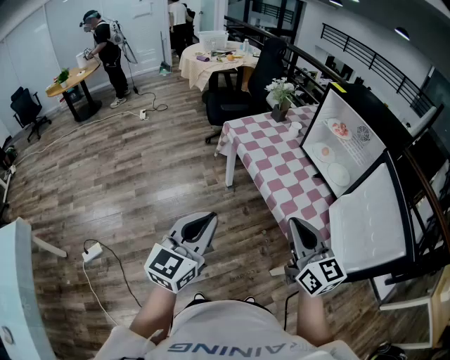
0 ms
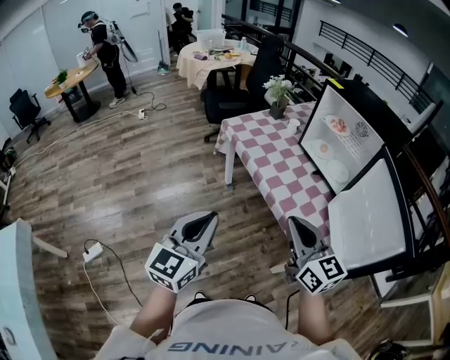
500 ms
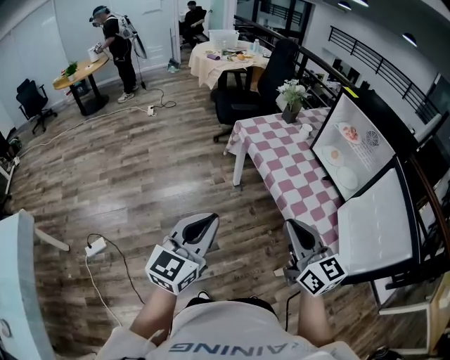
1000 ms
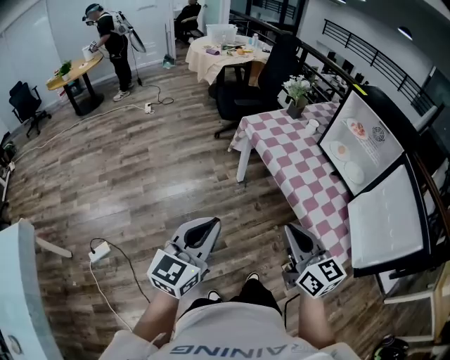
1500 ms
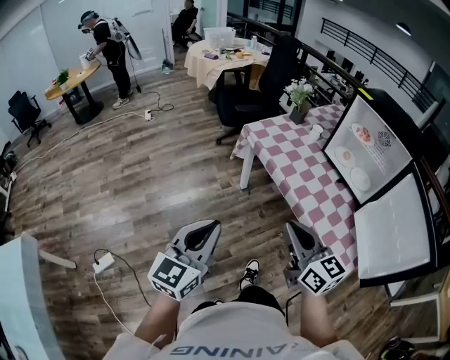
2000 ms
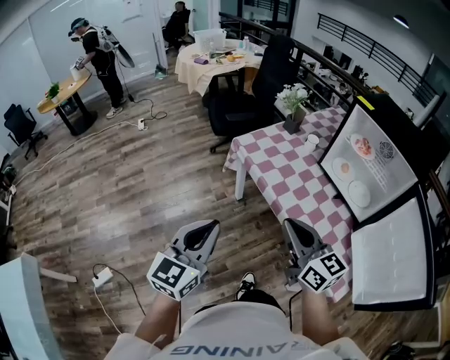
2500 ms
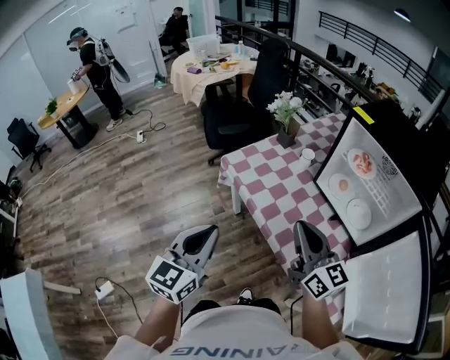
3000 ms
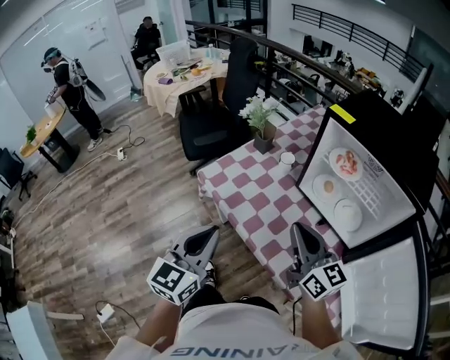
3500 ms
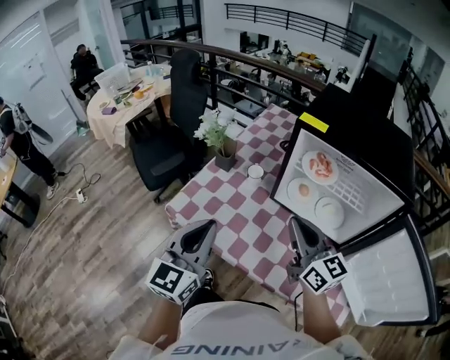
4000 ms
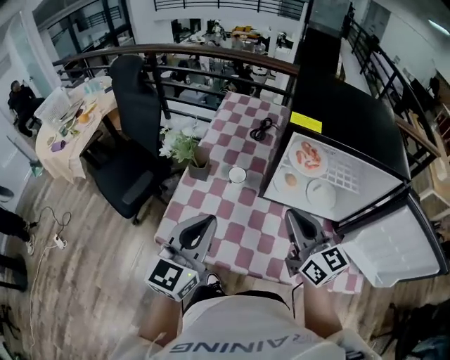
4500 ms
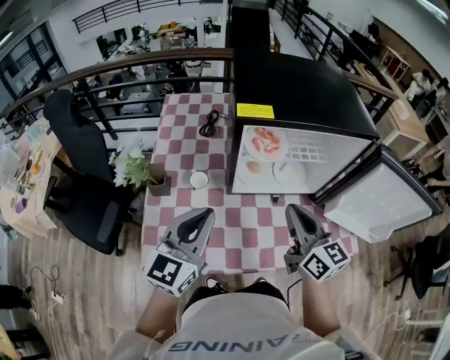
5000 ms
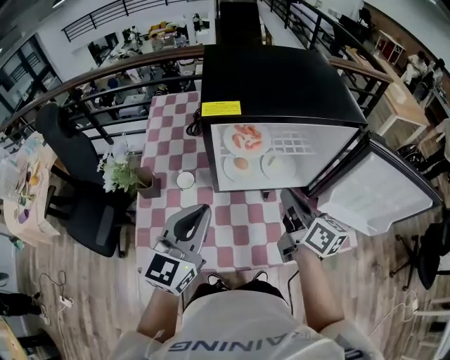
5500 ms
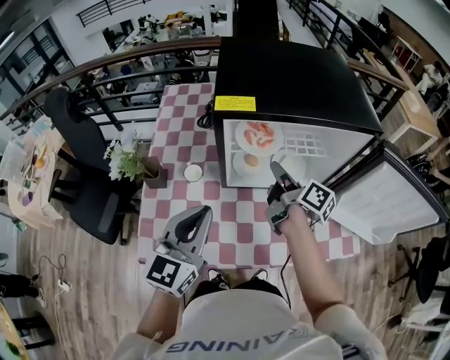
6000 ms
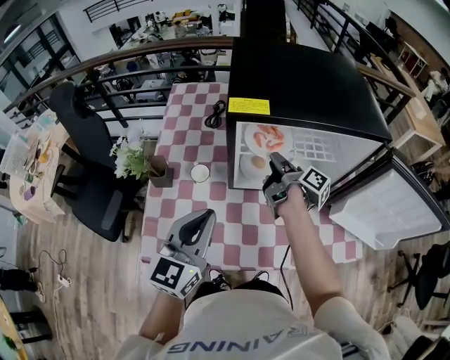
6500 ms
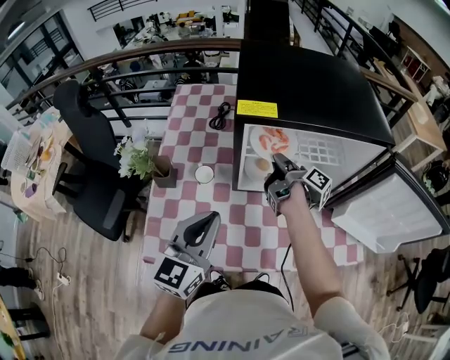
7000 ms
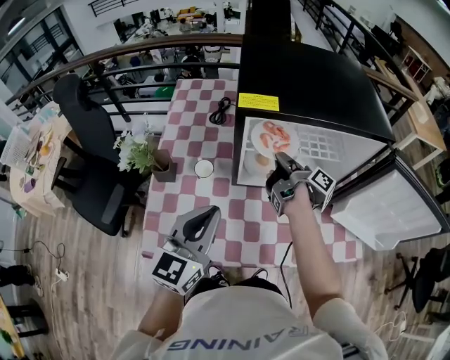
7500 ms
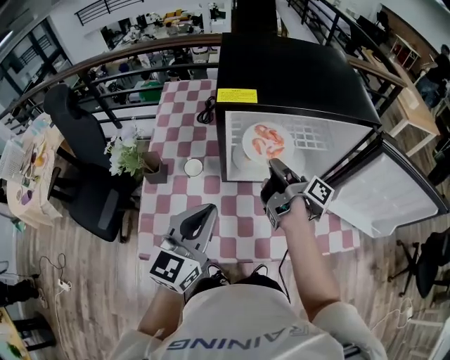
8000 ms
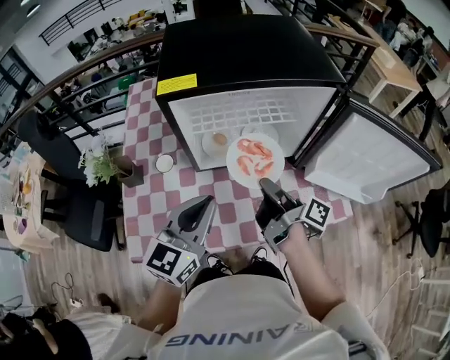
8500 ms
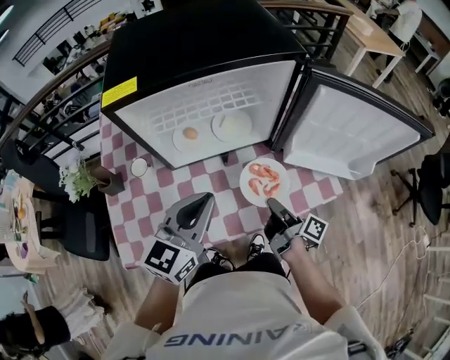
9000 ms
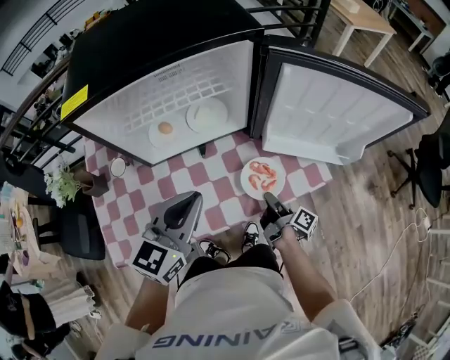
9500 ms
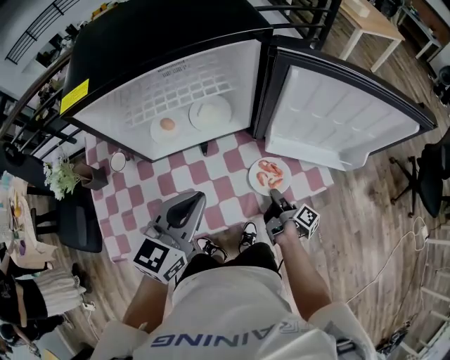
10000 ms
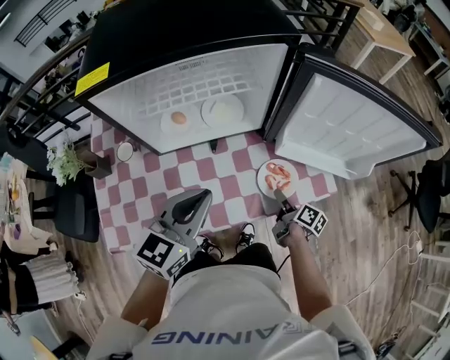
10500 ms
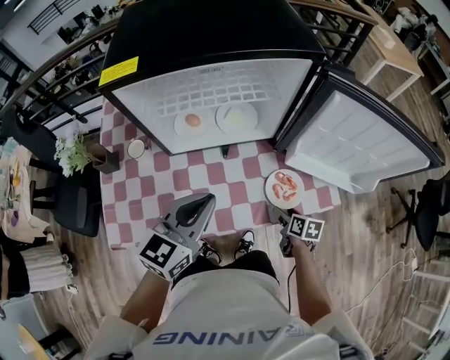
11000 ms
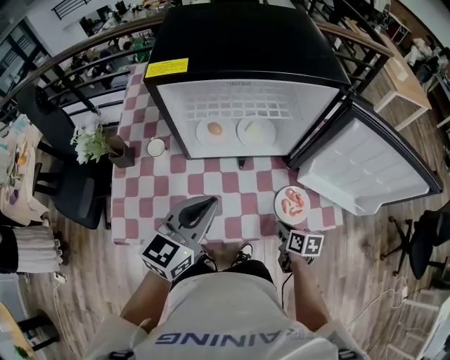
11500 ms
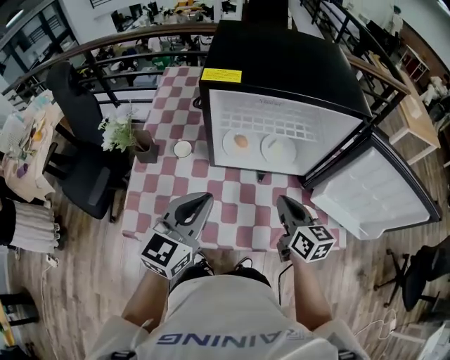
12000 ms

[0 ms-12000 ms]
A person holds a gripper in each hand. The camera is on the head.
0 ms to 2000 ms: The grippers both shift to the left by approximately 10 cm.
2000 ms to 4000 ms: Both grippers are carried approximately 50 cm. The left gripper swivels about 20 degrees, while the right gripper rotates some 30 degrees.
4000 ms to 6000 ms: The left gripper ends up approximately 15 cm from where it was, and changes its angle by about 40 degrees. The right gripper ends up about 20 cm from where it was, rotates approximately 70 degrees, and opens.
6000 ms to 8000 ms: The right gripper turns by about 20 degrees, and closes its fingers.
8000 ms to 10000 ms: The left gripper goes about 20 cm to the right, and changes its angle by approximately 20 degrees; the right gripper shifts approximately 40 cm to the right, downward and backward, and turns by some 30 degrees.
10000 ms to 12000 ms: The right gripper travels upward and to the left by about 30 cm, twists approximately 80 degrees counterclockwise, seen from behind, and opens and closes again. The left gripper travels to the left by roughly 15 cm, and changes its angle by some 20 degrees.

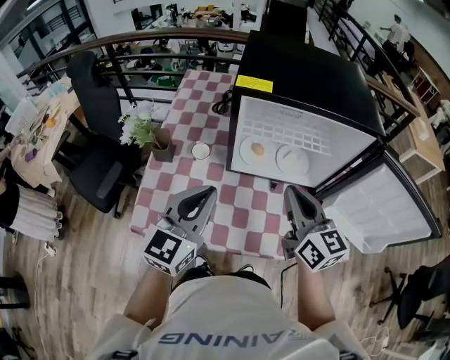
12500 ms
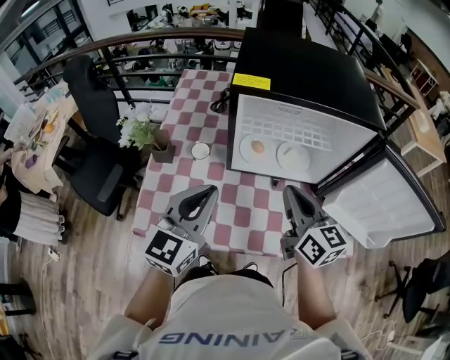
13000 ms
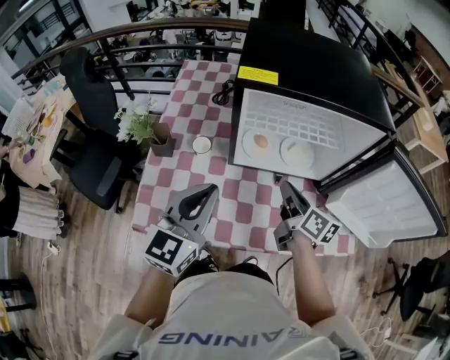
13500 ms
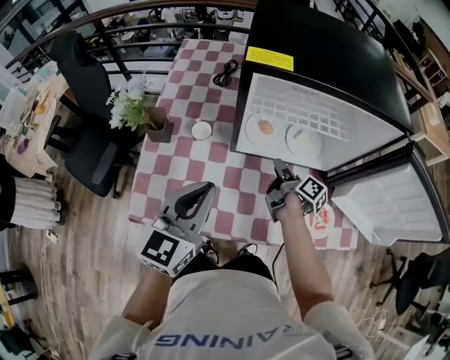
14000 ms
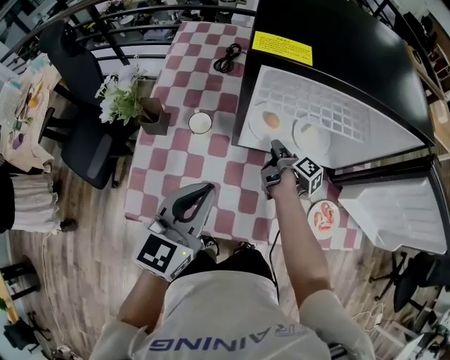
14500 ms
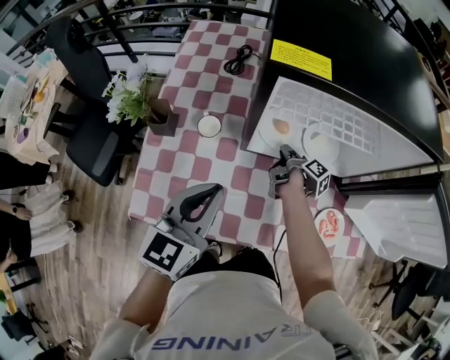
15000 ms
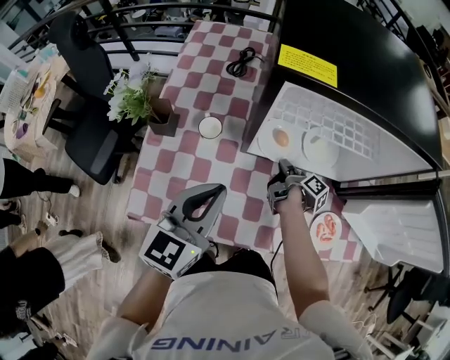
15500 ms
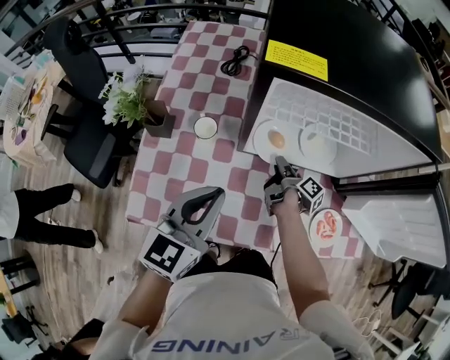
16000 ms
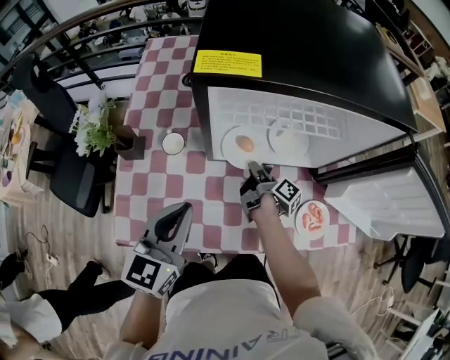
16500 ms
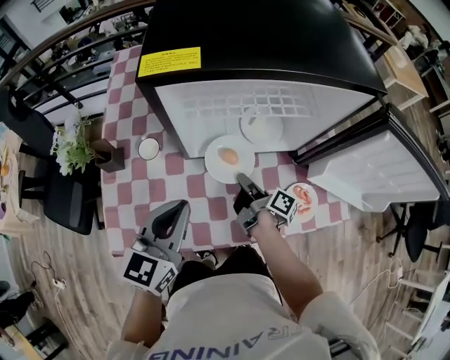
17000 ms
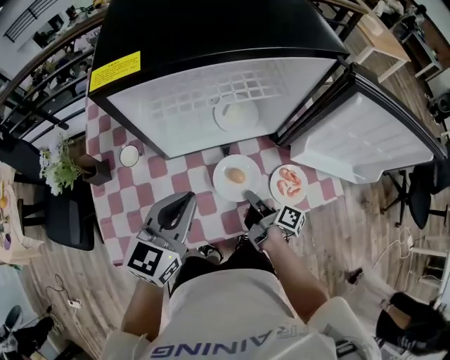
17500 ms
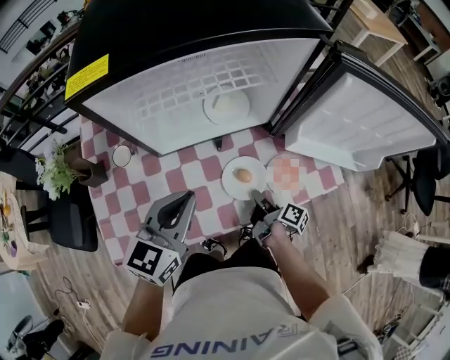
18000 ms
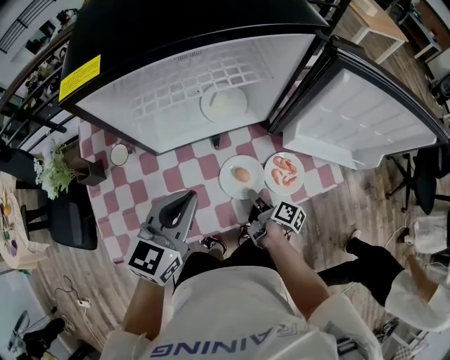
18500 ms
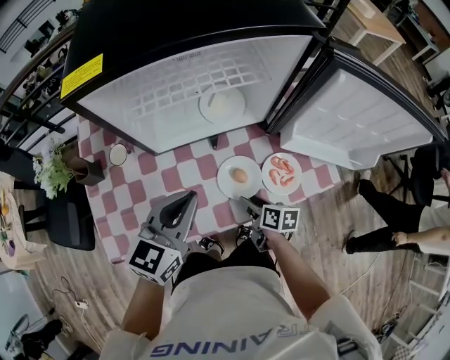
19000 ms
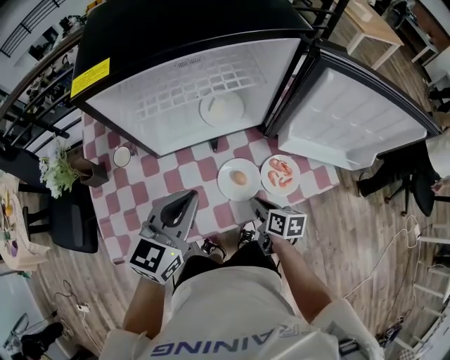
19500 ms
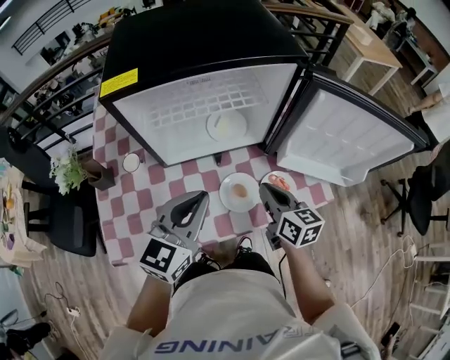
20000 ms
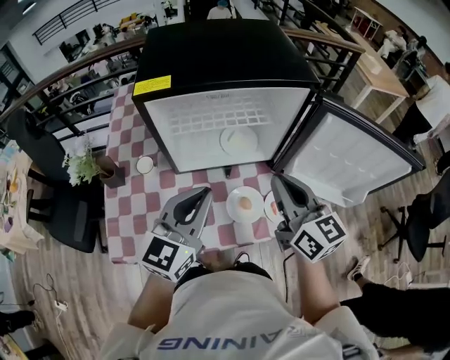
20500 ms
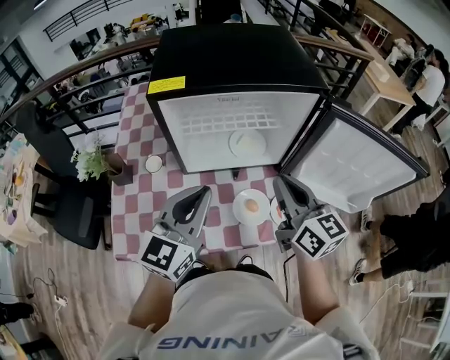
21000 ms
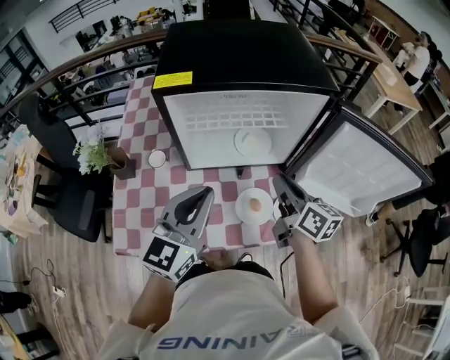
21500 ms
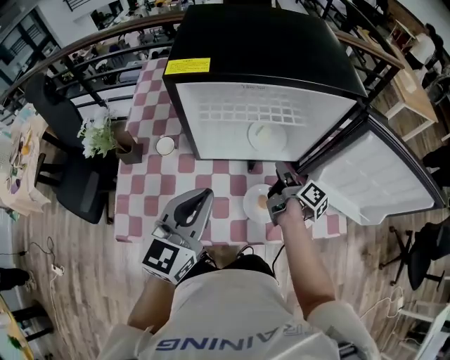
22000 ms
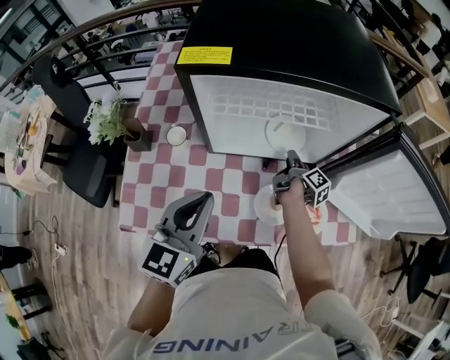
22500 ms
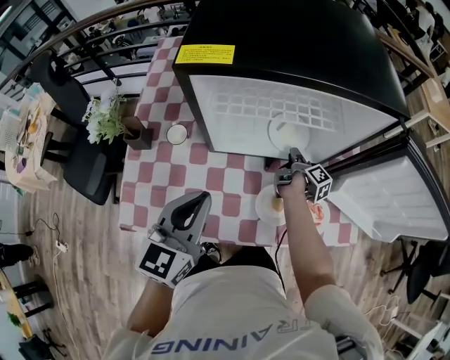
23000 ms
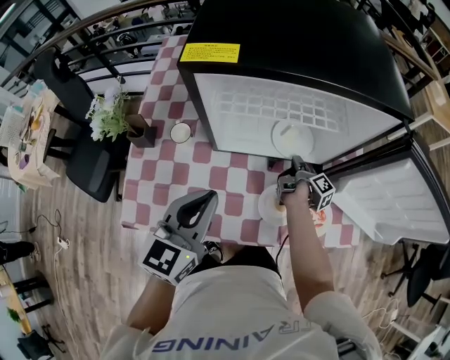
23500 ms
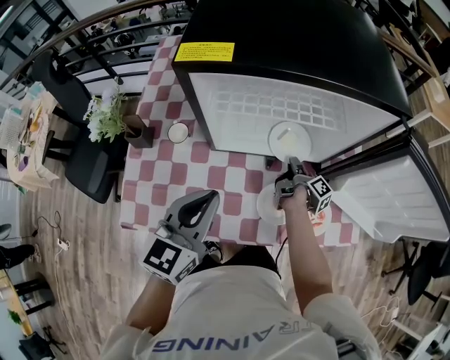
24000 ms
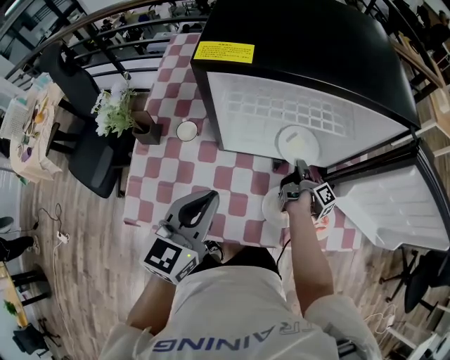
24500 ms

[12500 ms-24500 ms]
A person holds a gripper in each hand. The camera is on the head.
12500 ms to 14500 ms: The left gripper is displaced downward by about 5 cm; the right gripper travels downward and forward by some 35 cm, rotates around the line of its fingers by about 80 degrees, clockwise from behind, and opens up.
14500 ms to 16500 ms: The right gripper closes.
16500 ms to 18500 ms: The left gripper shifts some 15 cm to the right, and rotates some 20 degrees. Meanwhile the right gripper is displaced backward and to the right by some 25 cm.
18500 ms to 20500 ms: The left gripper shifts roughly 10 cm upward; the right gripper moves upward, some 35 cm, twists about 70 degrees counterclockwise, seen from behind, and opens, then closes again.
20500 ms to 22500 ms: The right gripper goes approximately 35 cm downward and forward, twists some 70 degrees clockwise, seen from behind, and opens its fingers, while the left gripper travels to the left and downward by approximately 10 cm.
22500 ms to 24500 ms: The right gripper closes.

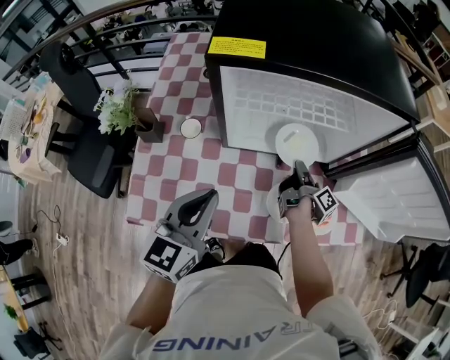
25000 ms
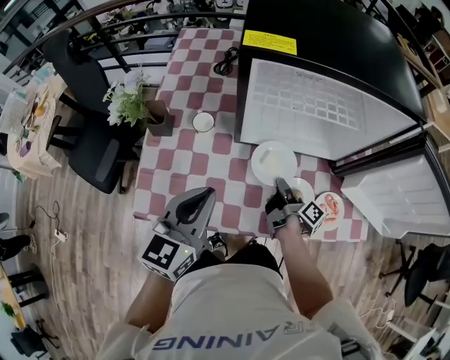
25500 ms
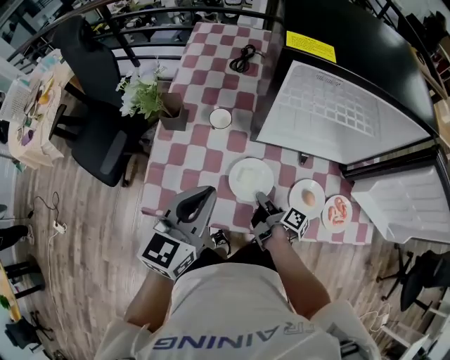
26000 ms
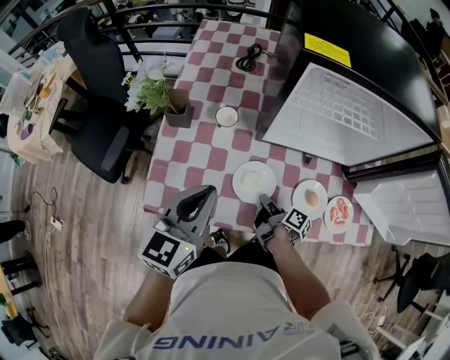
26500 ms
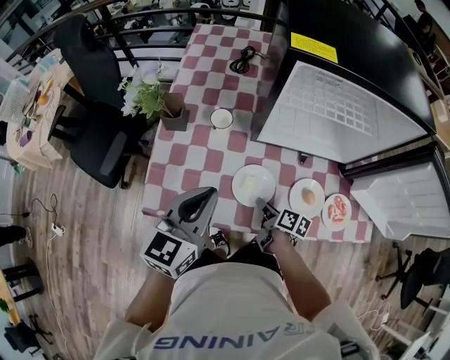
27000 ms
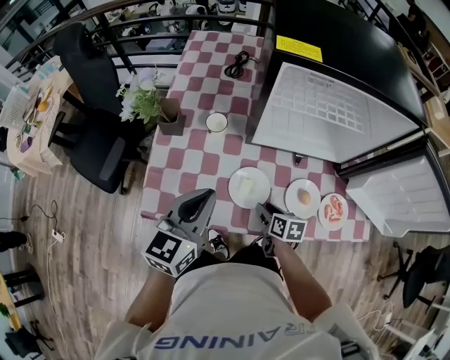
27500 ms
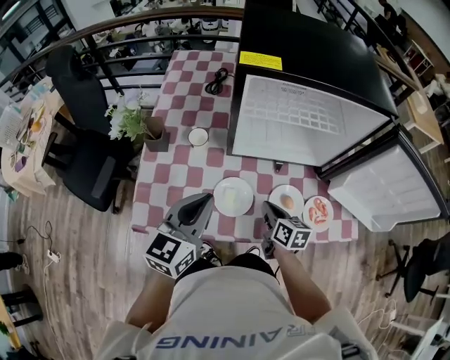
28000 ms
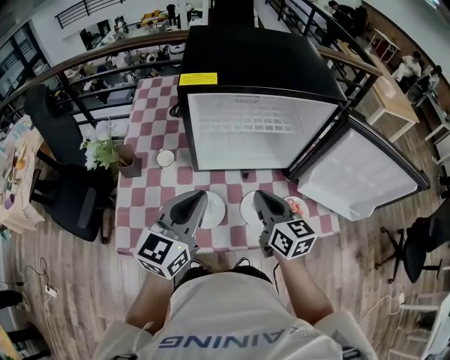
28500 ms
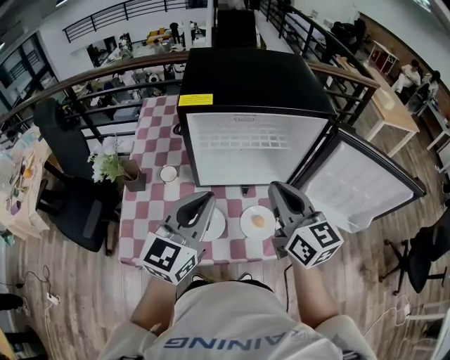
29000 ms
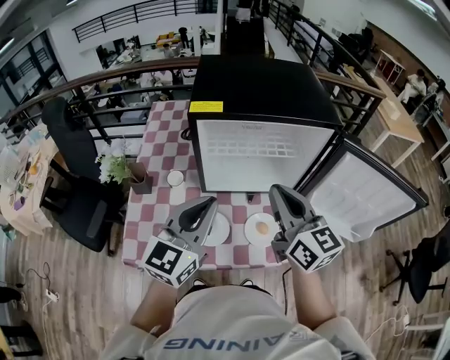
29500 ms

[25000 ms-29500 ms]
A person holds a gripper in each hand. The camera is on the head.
25000 ms to 27000 ms: The right gripper shifts roughly 25 cm to the left and backward, swivels approximately 50 degrees, and opens up, while the left gripper shifts roughly 10 cm to the left.
27000 ms to 29500 ms: The right gripper goes approximately 40 cm upward, tilts its fingers about 40 degrees upward, and closes up. Meanwhile the left gripper moves to the right and upward, about 20 cm, and swivels some 20 degrees.
